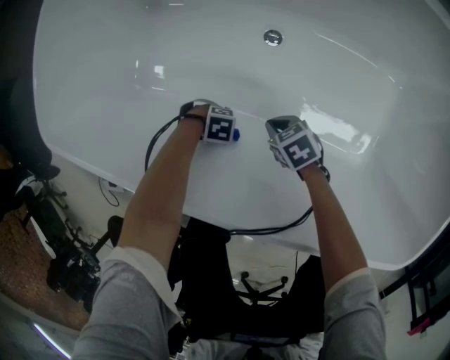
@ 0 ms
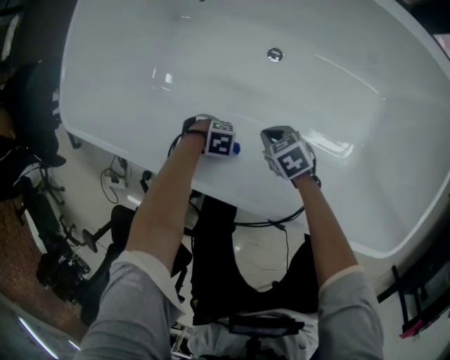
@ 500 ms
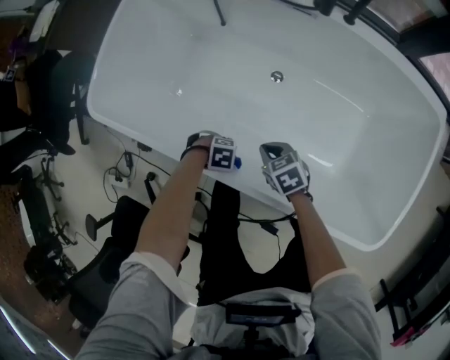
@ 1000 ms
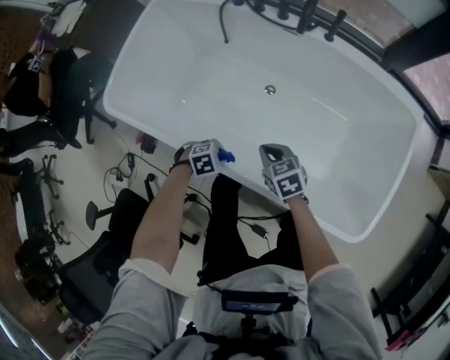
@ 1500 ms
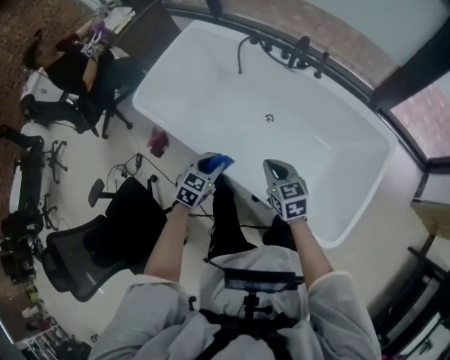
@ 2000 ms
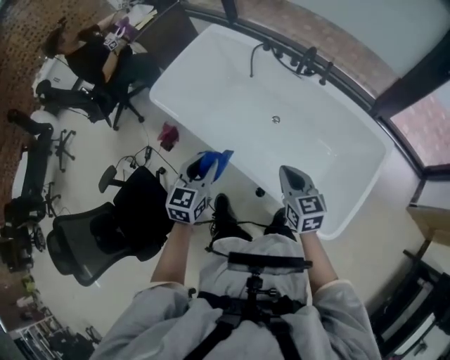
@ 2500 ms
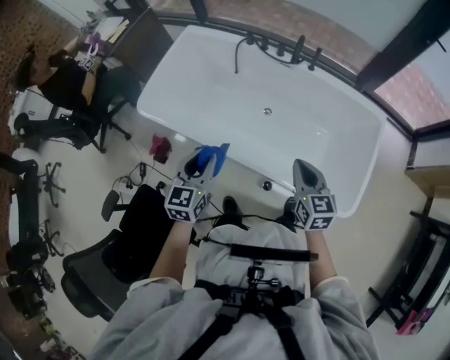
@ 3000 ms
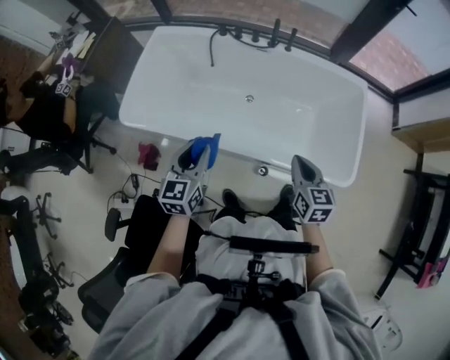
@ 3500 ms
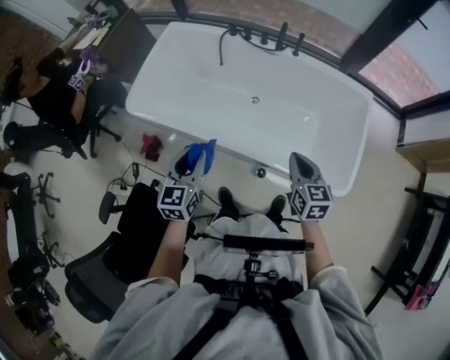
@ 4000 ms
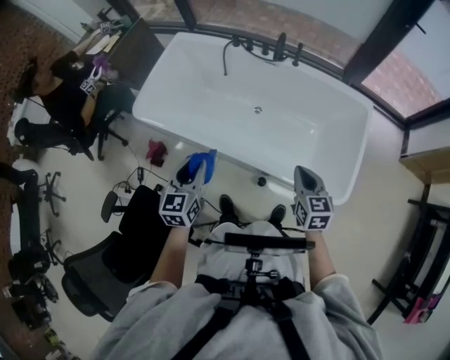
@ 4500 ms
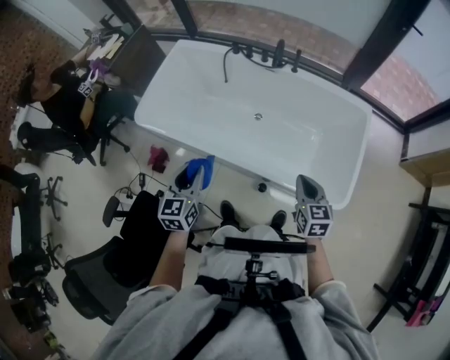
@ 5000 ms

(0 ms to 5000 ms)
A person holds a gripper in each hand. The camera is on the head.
0 ms - 2500 ms: The right gripper heads upward, covering roughly 60 cm, and points its fingers some 30 degrees further upward.
2500 ms - 5000 ms: The right gripper ends up some 10 cm from where it was, and swivels about 30 degrees.

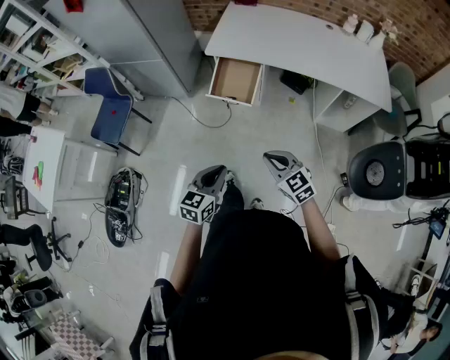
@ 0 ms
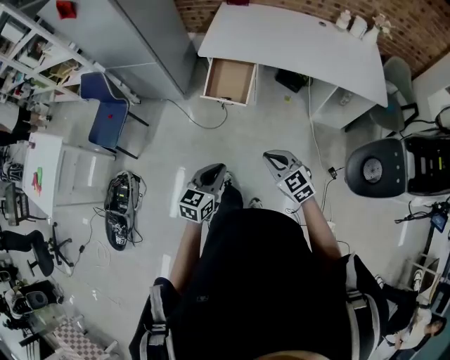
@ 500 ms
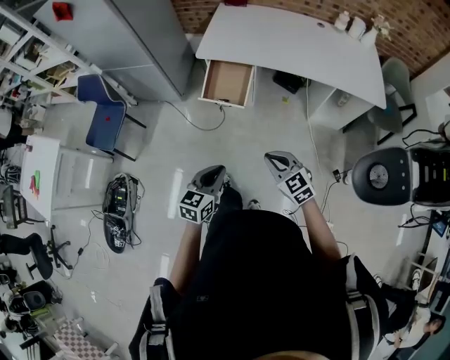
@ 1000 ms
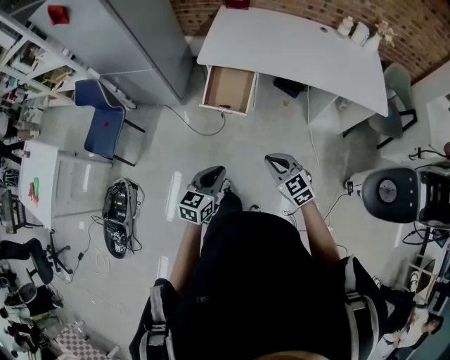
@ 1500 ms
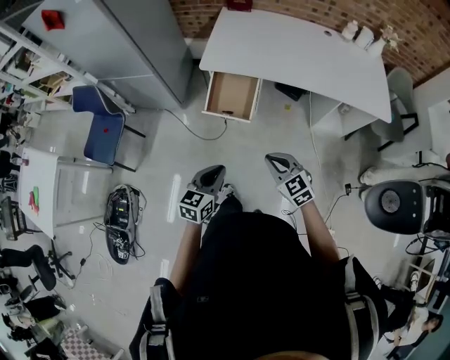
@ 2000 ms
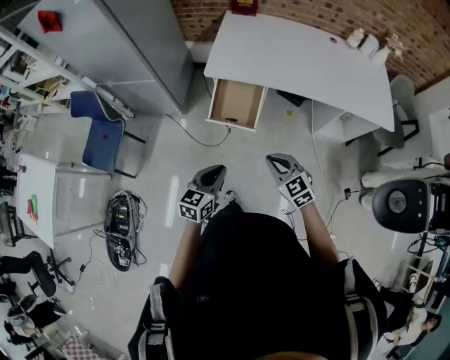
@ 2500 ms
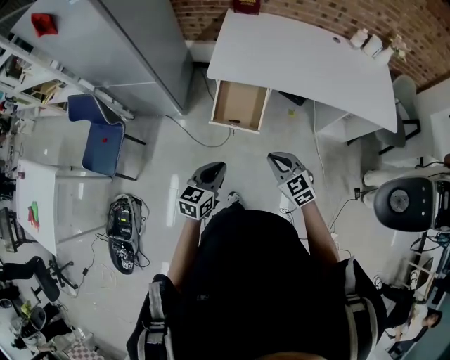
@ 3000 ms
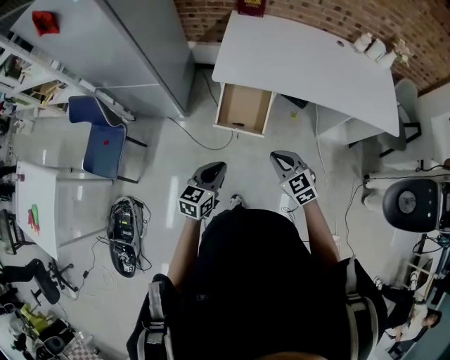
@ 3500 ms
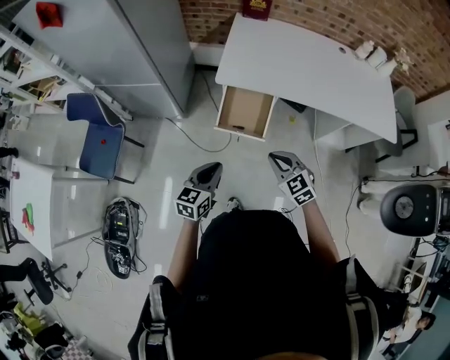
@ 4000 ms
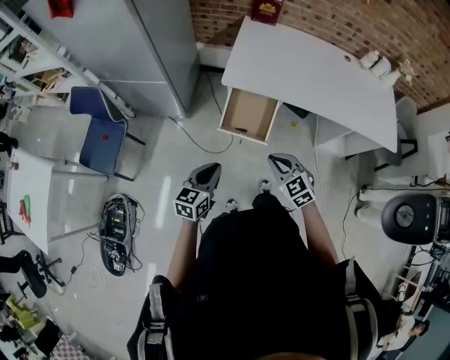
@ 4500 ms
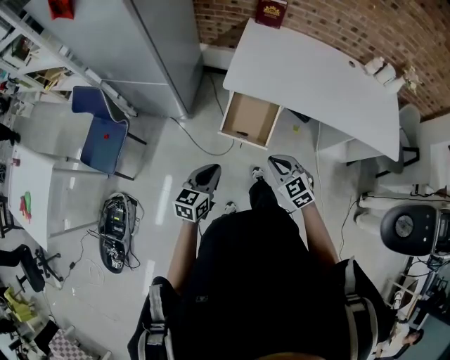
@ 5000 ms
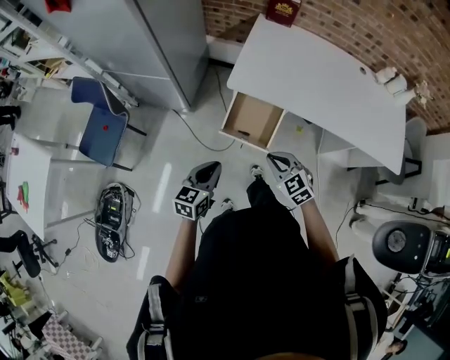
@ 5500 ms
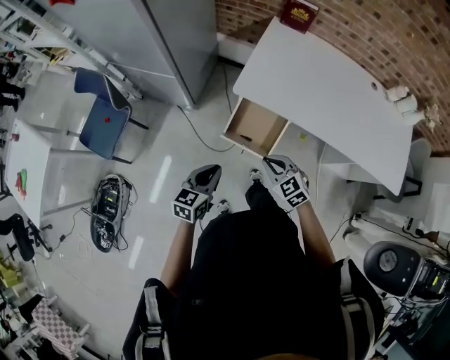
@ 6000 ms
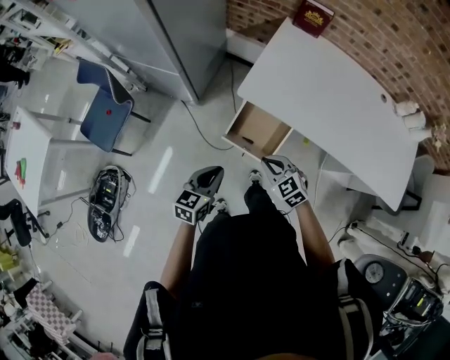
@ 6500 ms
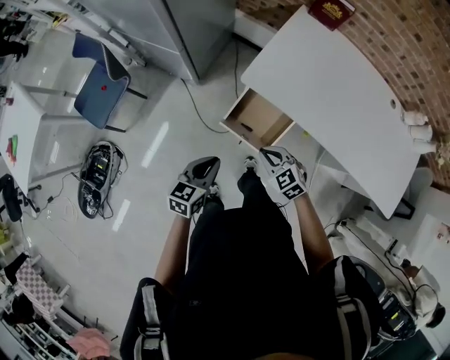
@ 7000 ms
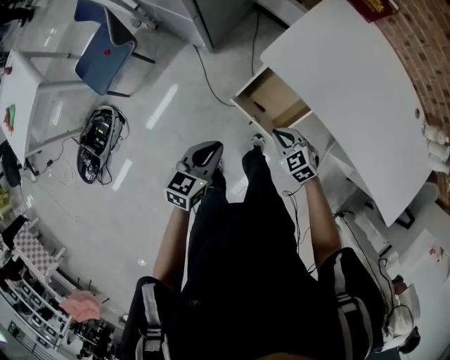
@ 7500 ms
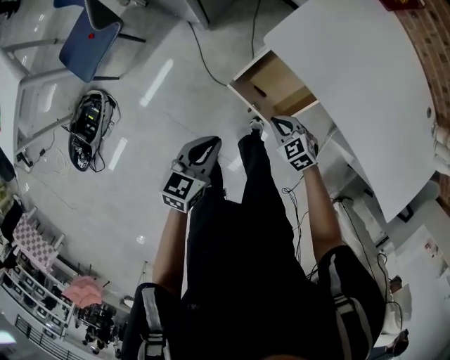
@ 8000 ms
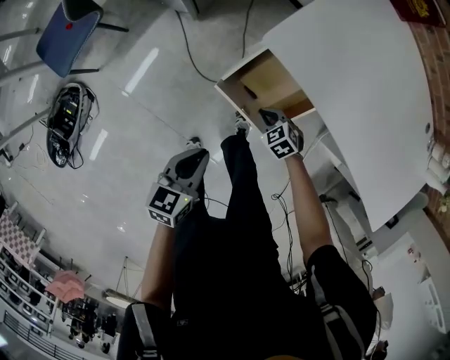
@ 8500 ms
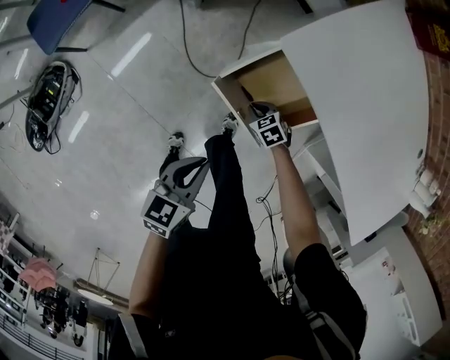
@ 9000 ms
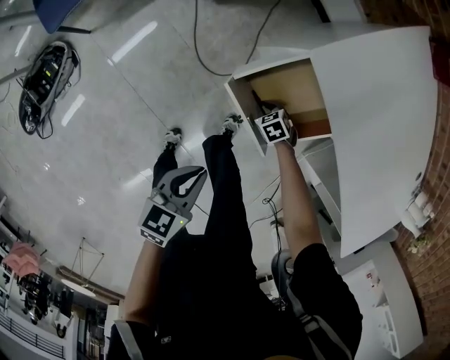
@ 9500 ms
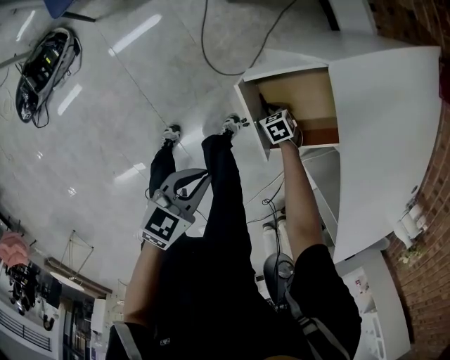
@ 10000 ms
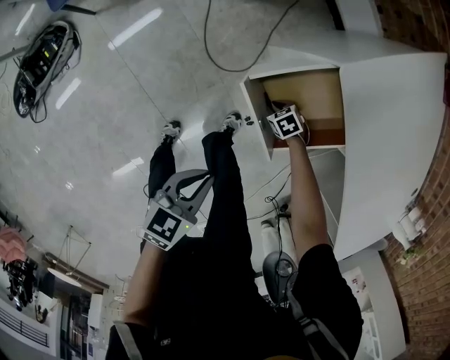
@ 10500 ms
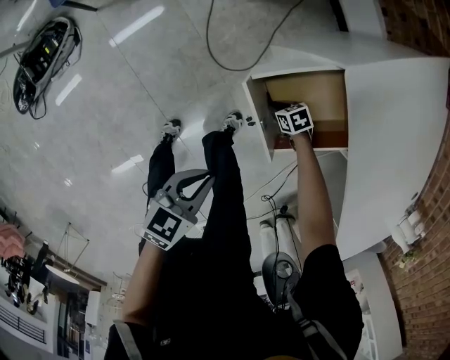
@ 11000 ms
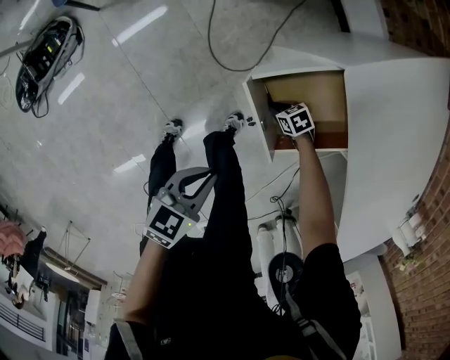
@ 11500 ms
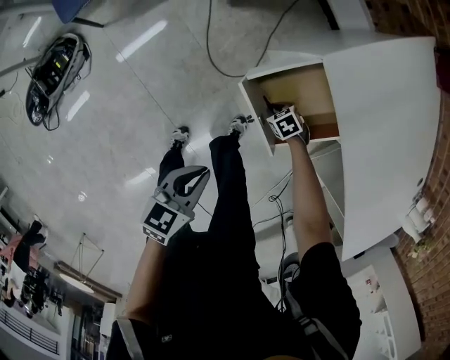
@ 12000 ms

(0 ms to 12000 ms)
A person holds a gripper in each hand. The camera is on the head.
0 ms - 2000 ms: The two grippers go approximately 10 cm forward.
2000 ms - 4000 ms: Both grippers move forward and to the left, some 15 cm.
4000 ms - 6000 ms: Both grippers travel together forward, roughly 10 cm.
6000 ms - 8000 ms: The left gripper travels downward and forward by about 10 cm. Meanwhile the right gripper goes roughly 20 cm downward and forward, and changes its angle by about 30 degrees.
8000 ms - 10000 ms: The left gripper goes about 15 cm downward. The right gripper moves downward, some 30 cm, and turns by approximately 30 degrees.
10000 ms - 12000 ms: The grippers move only a little.

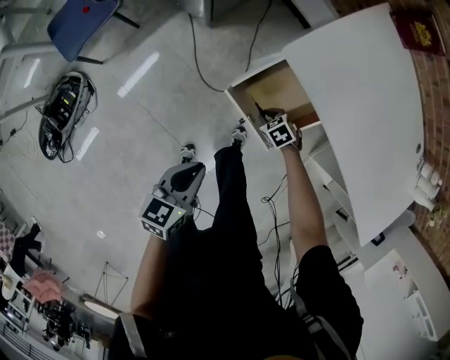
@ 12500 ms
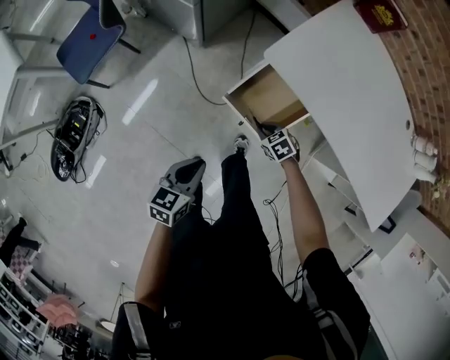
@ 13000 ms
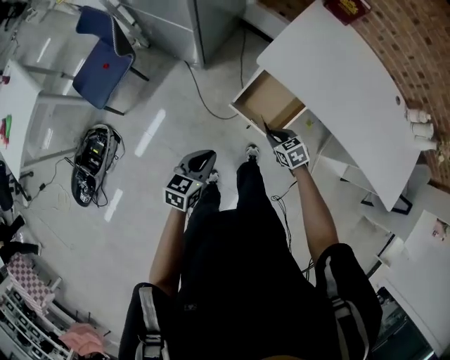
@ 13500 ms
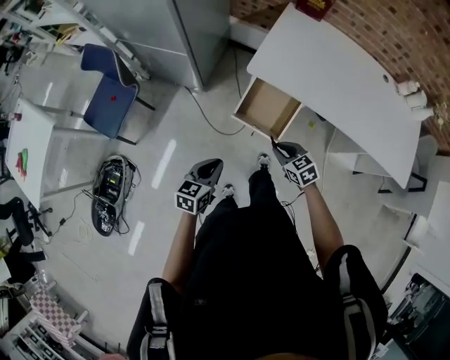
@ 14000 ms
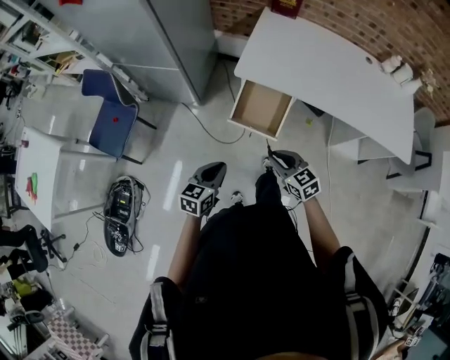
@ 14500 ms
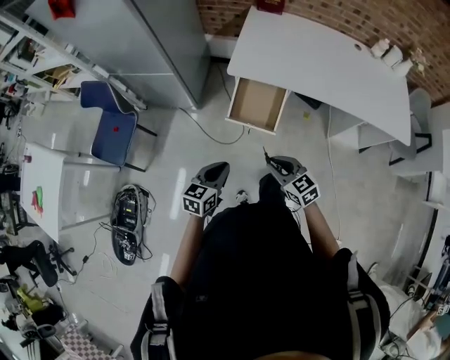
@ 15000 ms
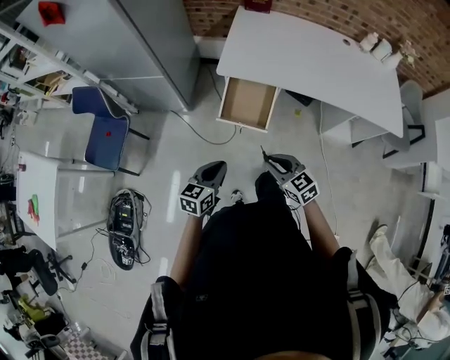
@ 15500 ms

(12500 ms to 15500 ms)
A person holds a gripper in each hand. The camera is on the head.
12500 ms - 14000 ms: The left gripper moves upward, about 10 cm, and rotates roughly 20 degrees. Meanwhile the right gripper heads upward, covering about 30 cm, and changes its angle by about 40 degrees.
14000 ms - 15500 ms: The left gripper heads backward, covering about 5 cm, while the right gripper heads backward and upward, covering roughly 15 cm.

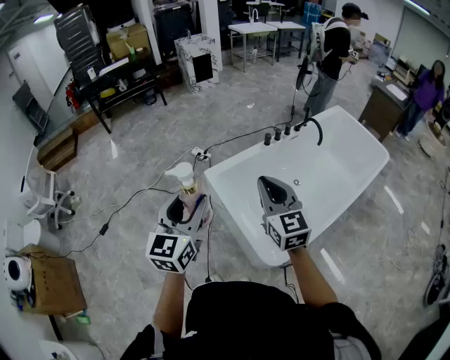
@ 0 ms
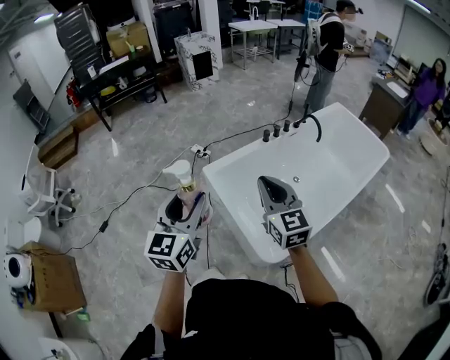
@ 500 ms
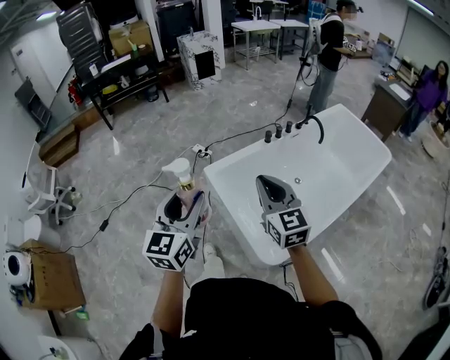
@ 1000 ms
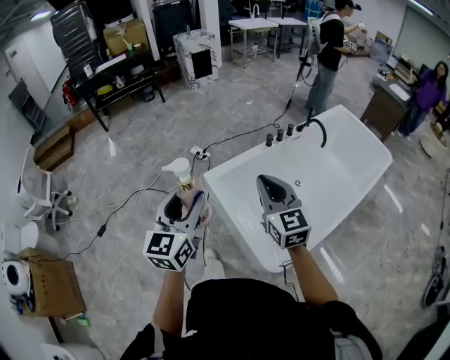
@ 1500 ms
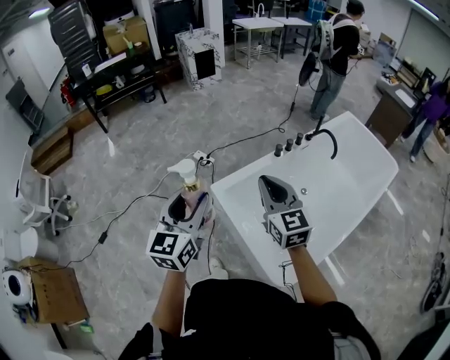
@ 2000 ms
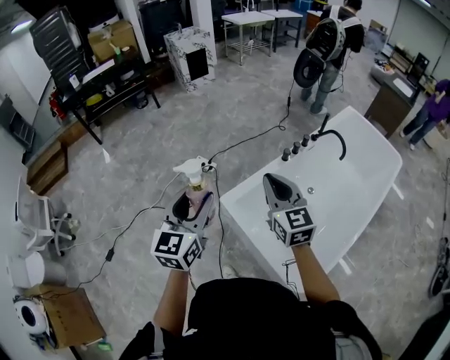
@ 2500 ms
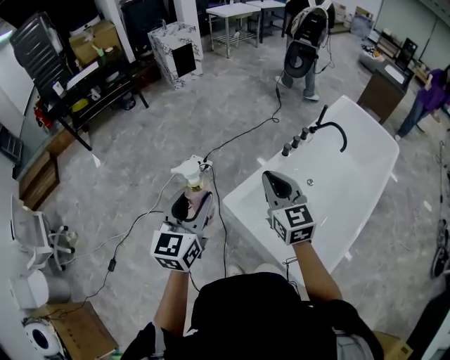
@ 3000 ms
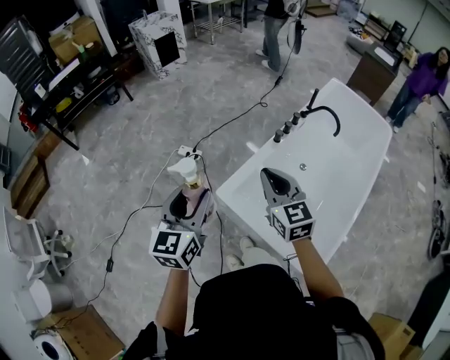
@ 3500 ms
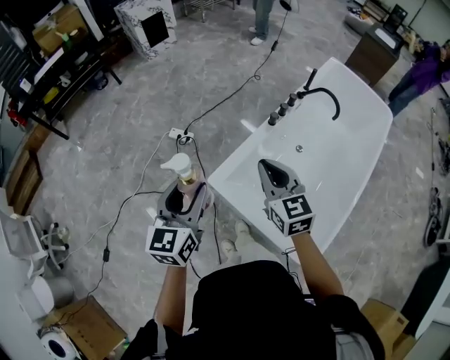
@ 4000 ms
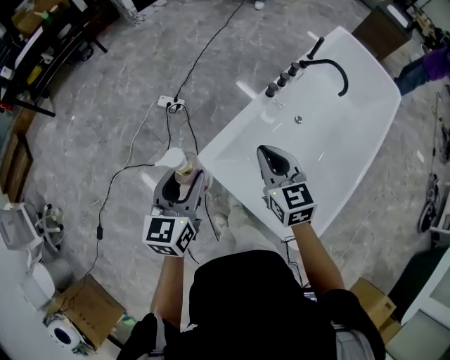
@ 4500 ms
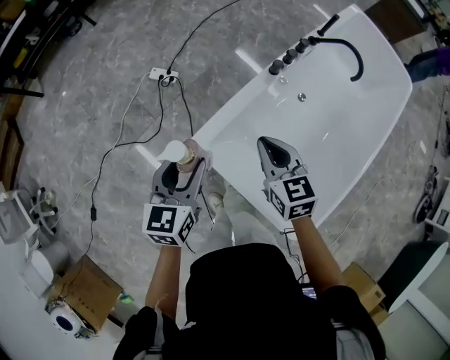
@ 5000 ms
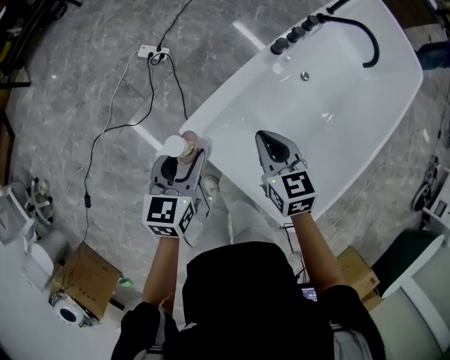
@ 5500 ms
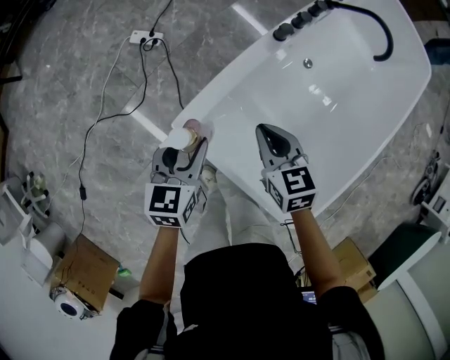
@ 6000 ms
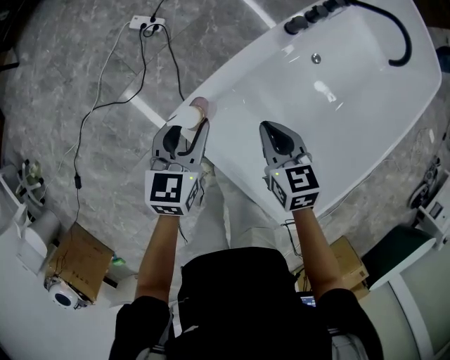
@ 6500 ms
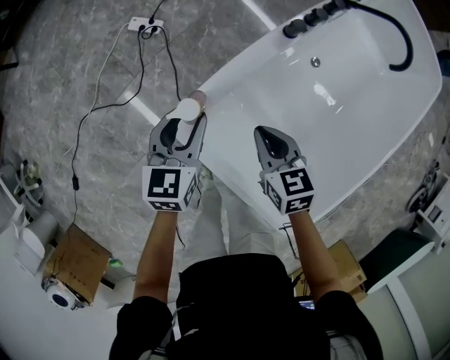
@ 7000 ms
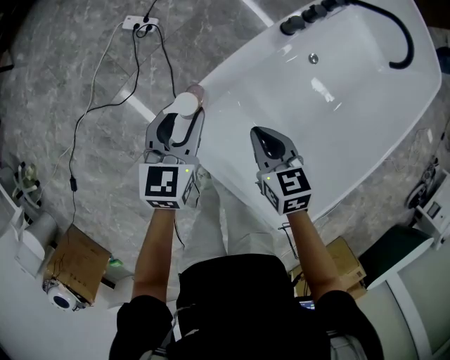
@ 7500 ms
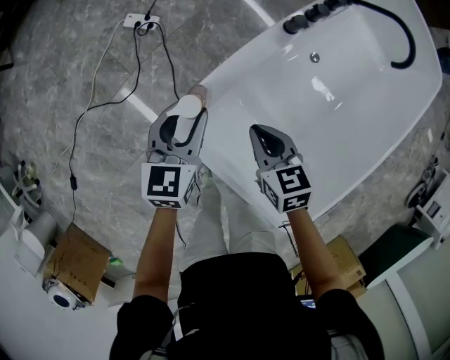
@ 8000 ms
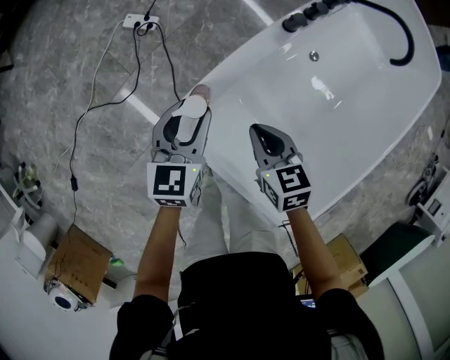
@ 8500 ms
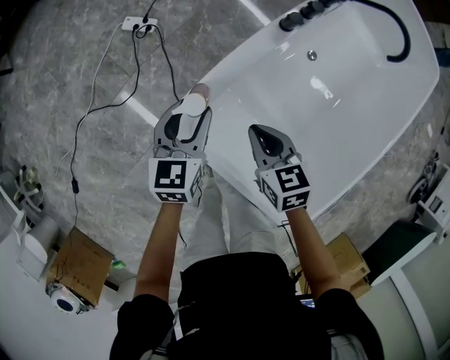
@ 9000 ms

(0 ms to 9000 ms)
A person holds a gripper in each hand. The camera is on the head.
0 ms - 2000 ms: The two grippers go roughly 15 cm forward.
2000 ms - 4500 ms: The grippers both shift forward and downward by some 25 cm. The right gripper changes its angle by about 20 degrees, while the left gripper turns by approximately 20 degrees.
4500 ms - 7000 ms: The left gripper goes about 30 cm downward and forward. The right gripper is displaced downward by some 25 cm, and changes its angle by roughly 20 degrees.
7000 ms - 9000 ms: The grippers make only small movements.
